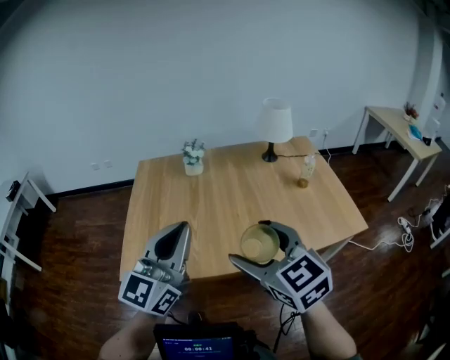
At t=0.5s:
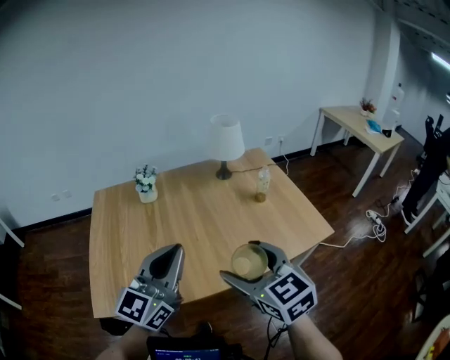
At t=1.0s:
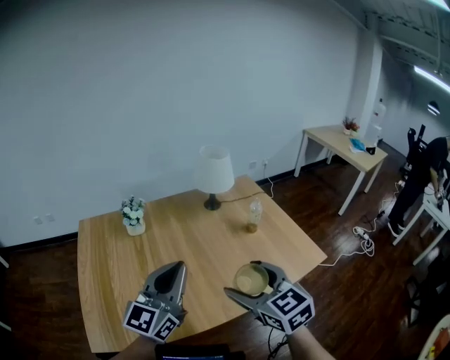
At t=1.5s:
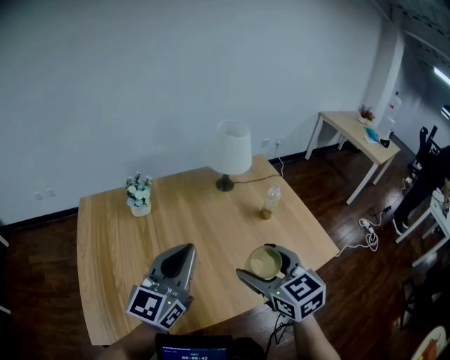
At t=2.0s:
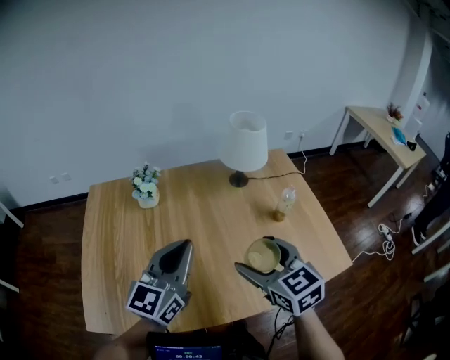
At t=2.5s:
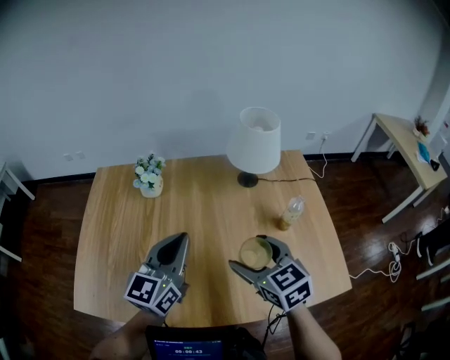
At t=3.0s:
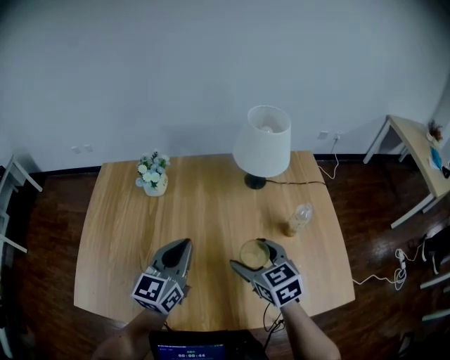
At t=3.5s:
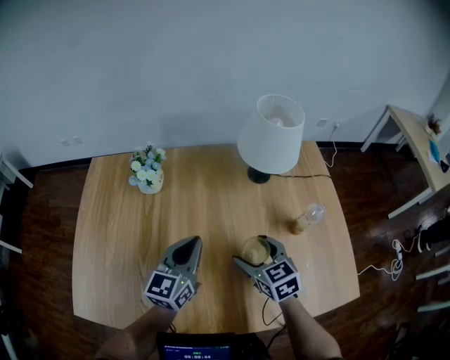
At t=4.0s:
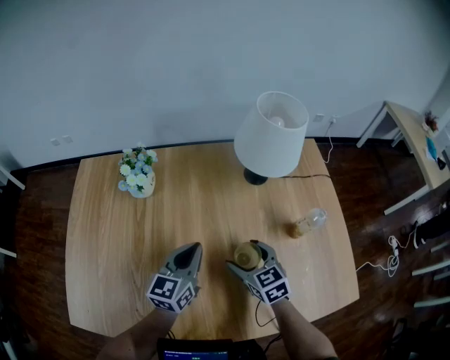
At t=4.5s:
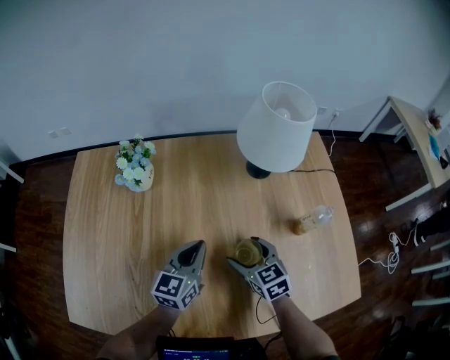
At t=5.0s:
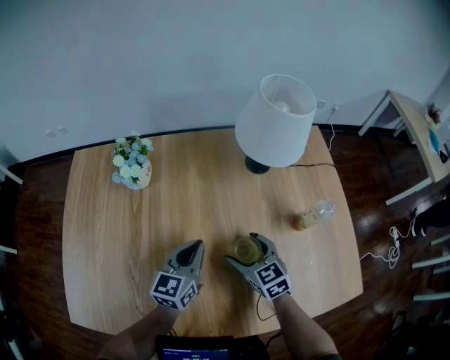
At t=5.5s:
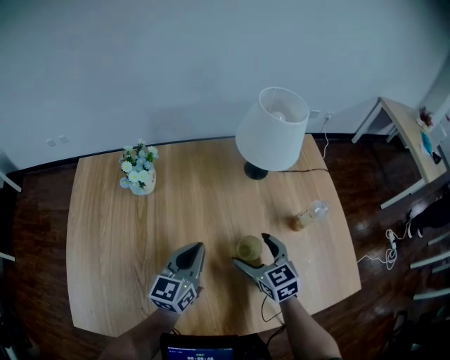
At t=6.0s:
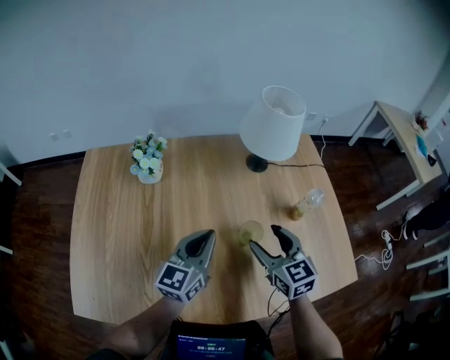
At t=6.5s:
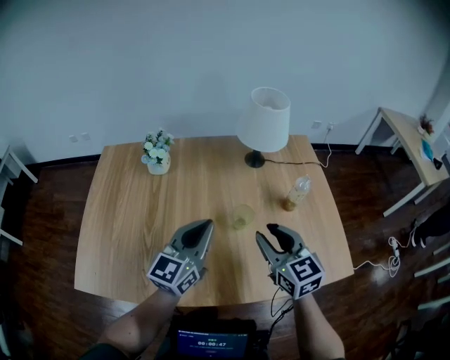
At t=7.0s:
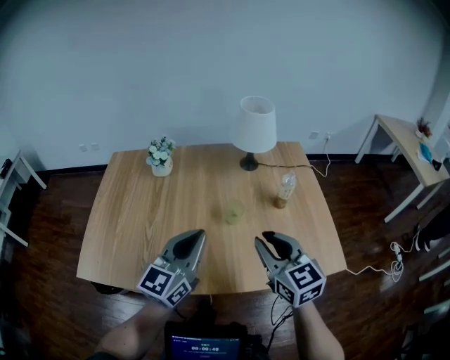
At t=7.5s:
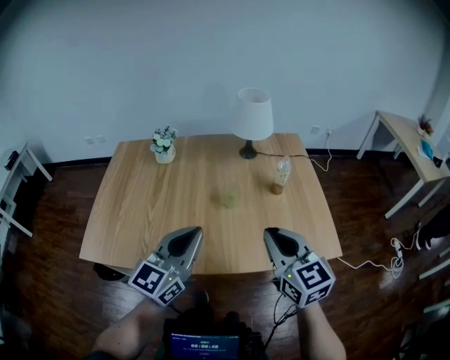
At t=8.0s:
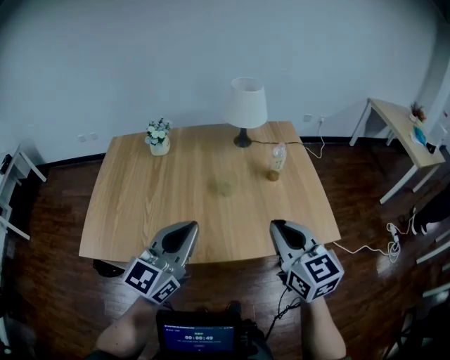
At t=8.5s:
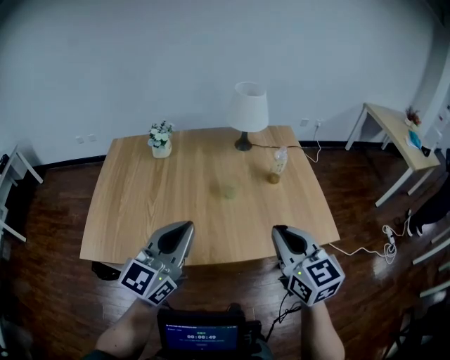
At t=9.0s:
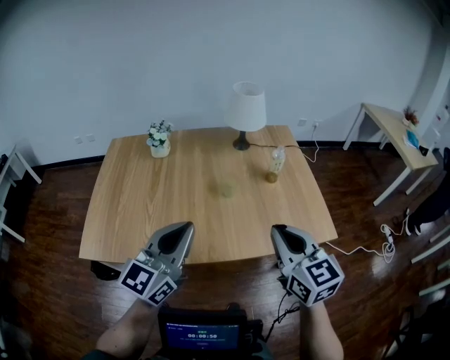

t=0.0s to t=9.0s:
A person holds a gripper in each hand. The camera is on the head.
t=0.0s to t=2.0s: Both grippers move forward and to the right, roughly 25 cm.
t=2.0s to t=4.5s: Both grippers move downward and forward, about 25 cm. The left gripper swivels some 20 degrees.
t=4.5s to t=7.0s: The right gripper heads upward and backward, covering some 30 cm, swivels some 20 degrees, and closes up; the left gripper travels backward and upward by roughly 30 cm, and turns by approximately 20 degrees.
t=7.0s to t=9.0s: Both grippers travel together backward, some 10 cm.

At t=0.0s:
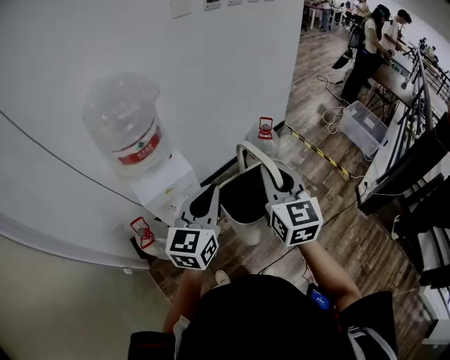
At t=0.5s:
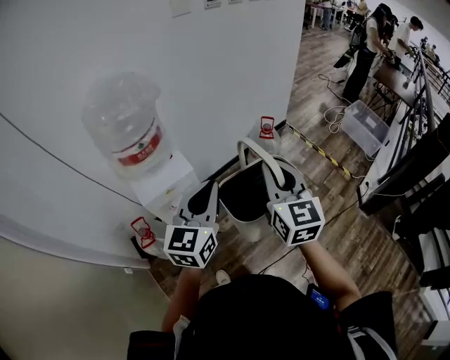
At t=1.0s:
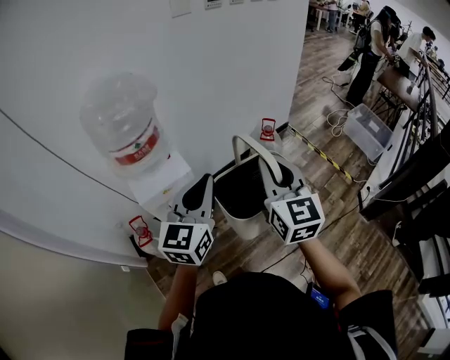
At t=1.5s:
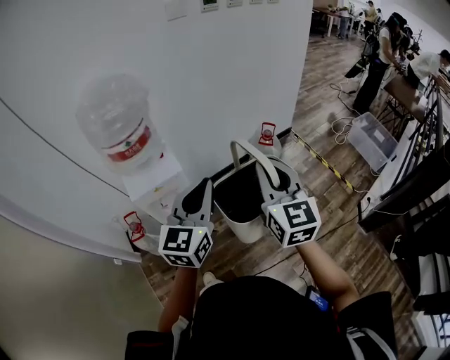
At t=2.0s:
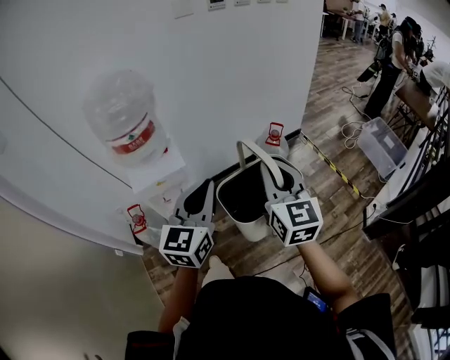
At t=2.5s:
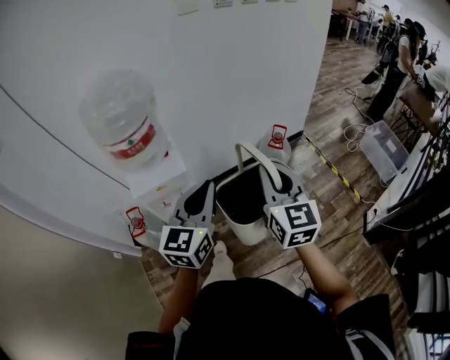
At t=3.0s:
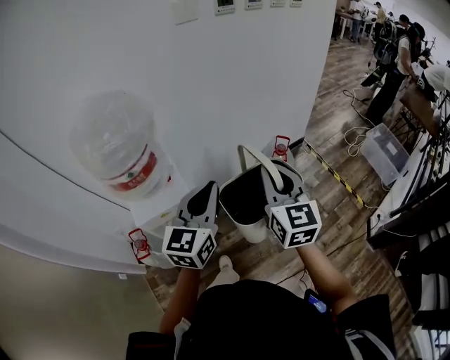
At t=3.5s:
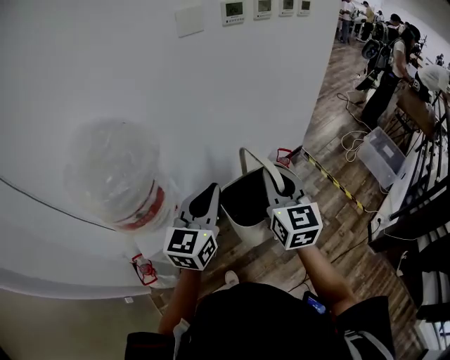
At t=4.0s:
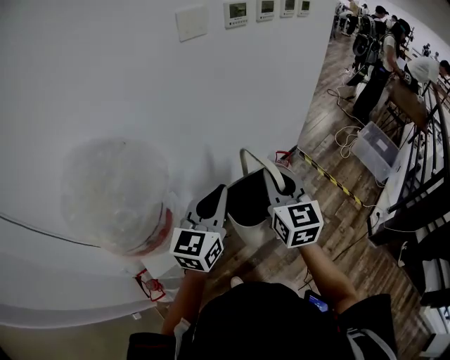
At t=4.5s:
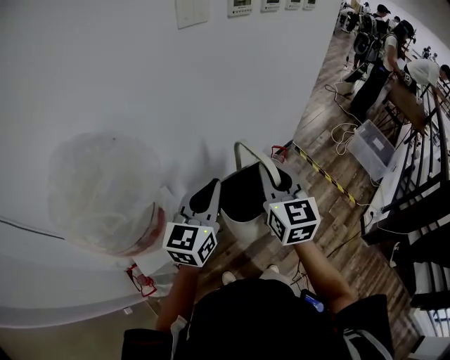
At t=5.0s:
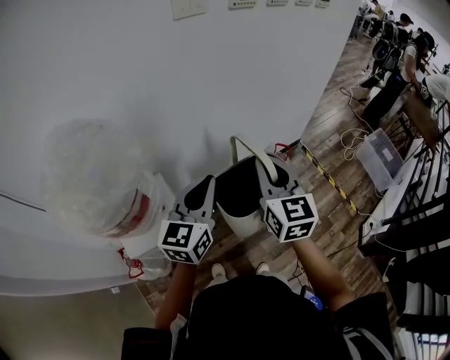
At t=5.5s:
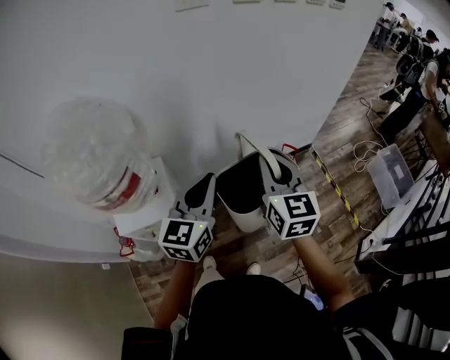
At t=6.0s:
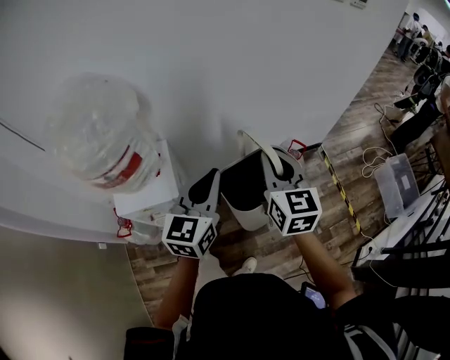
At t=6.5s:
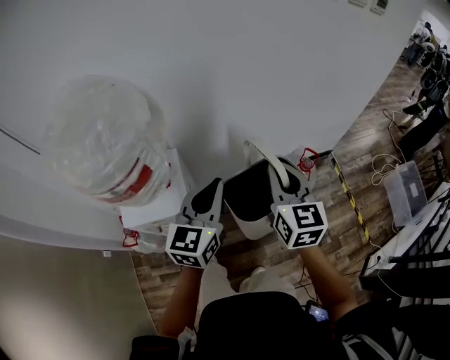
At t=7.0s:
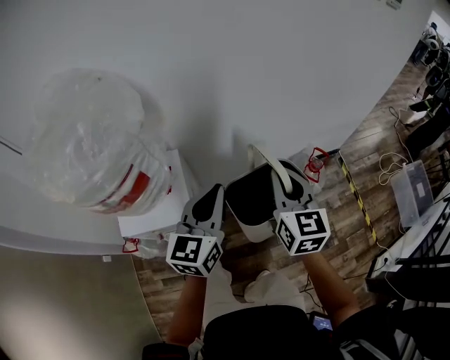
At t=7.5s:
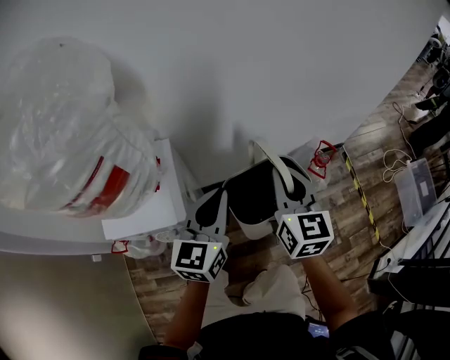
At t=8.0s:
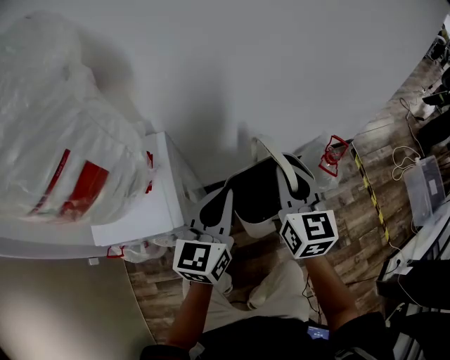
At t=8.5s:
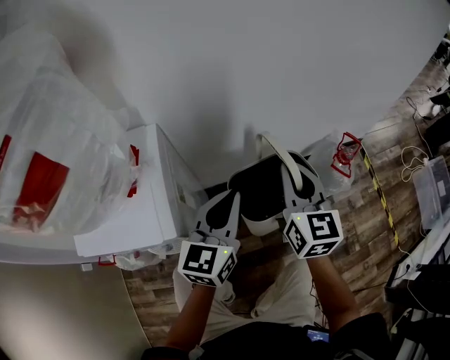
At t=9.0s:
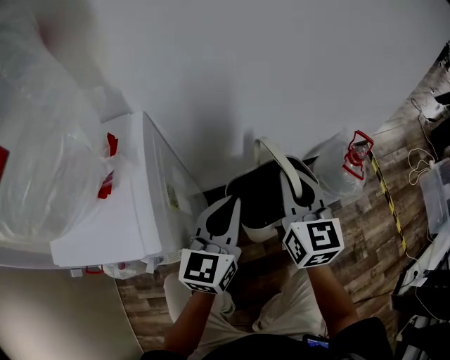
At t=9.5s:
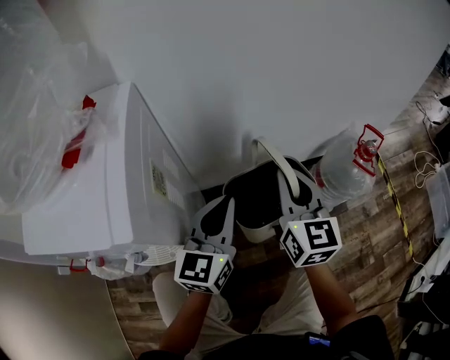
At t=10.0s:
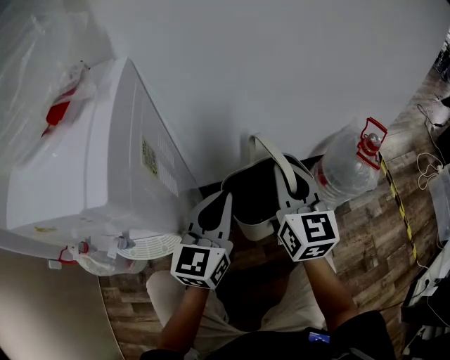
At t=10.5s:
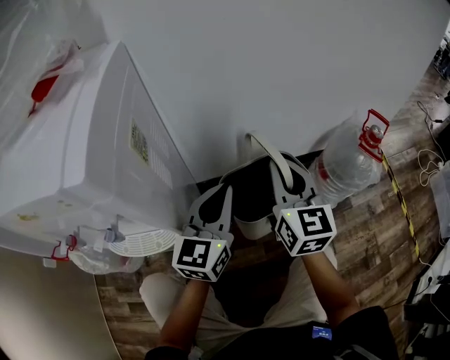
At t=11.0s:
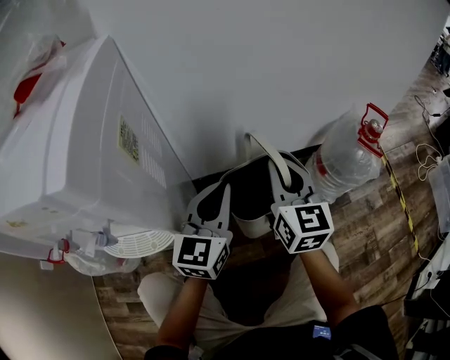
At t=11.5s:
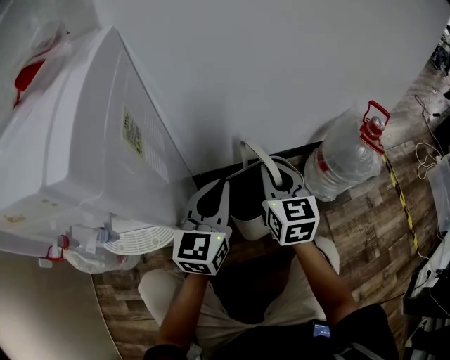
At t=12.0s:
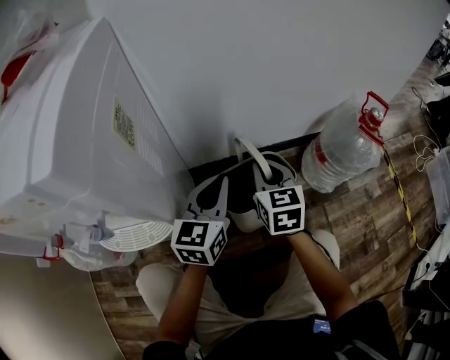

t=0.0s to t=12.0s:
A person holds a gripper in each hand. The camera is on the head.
t=0.0s to t=2.0s: Both grippers move to the right, roughly 10 cm.
t=2.0s to t=4.0s: The left gripper is displaced forward by roughly 30 cm. The right gripper moves forward and to the left, some 30 cm.
t=4.0s to t=6.0s: The left gripper moves to the right and downward, roughly 10 cm, and swivels roughly 20 degrees. Meanwhile the right gripper is displaced to the right by approximately 5 cm, and turns by roughly 20 degrees.
t=6.0s to t=8.0s: Both grippers move downward, some 25 cm.
t=8.0s to t=10.0s: The grippers both shift downward by approximately 25 cm.
t=10.0s to t=12.0s: The right gripper travels downward by some 15 cm, and changes its angle by roughly 20 degrees. Meanwhile the left gripper moves downward, roughly 10 cm.

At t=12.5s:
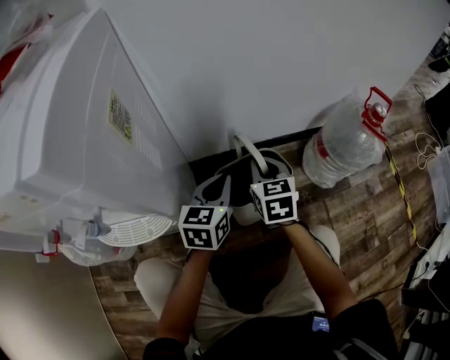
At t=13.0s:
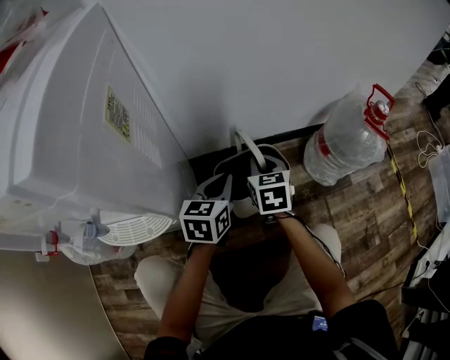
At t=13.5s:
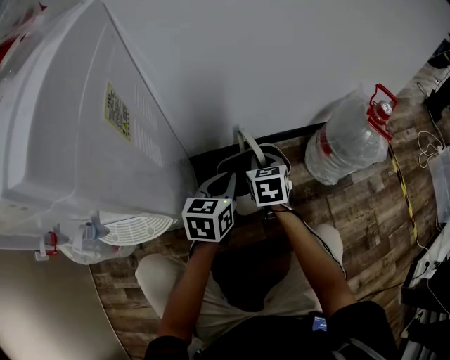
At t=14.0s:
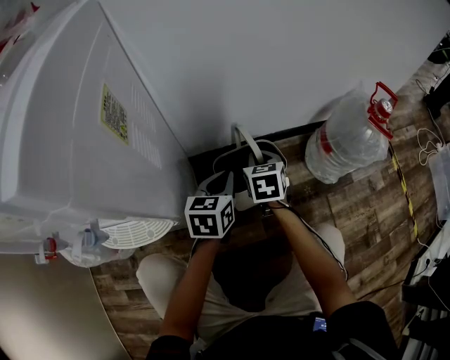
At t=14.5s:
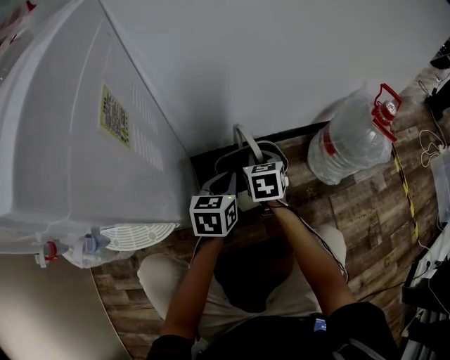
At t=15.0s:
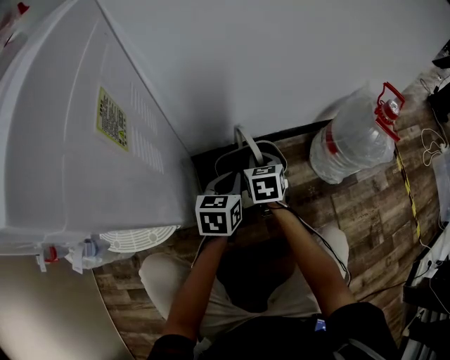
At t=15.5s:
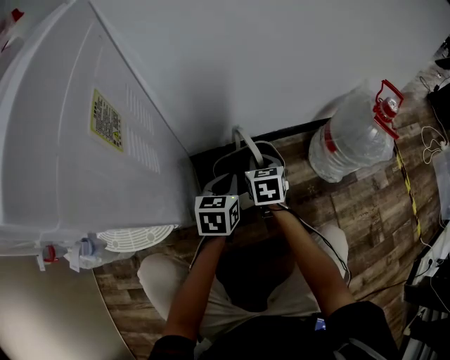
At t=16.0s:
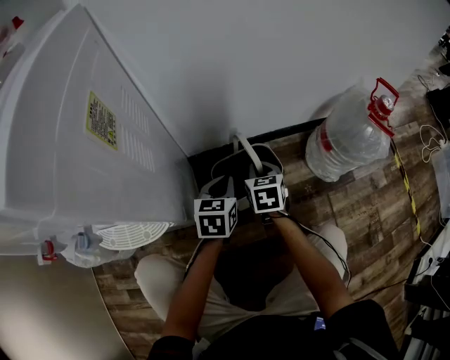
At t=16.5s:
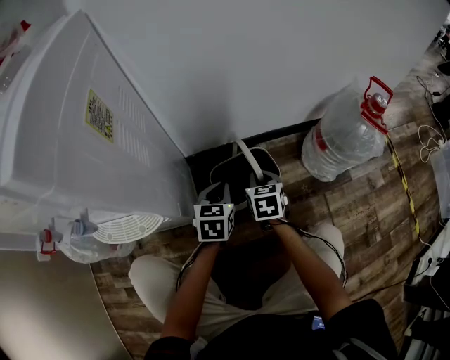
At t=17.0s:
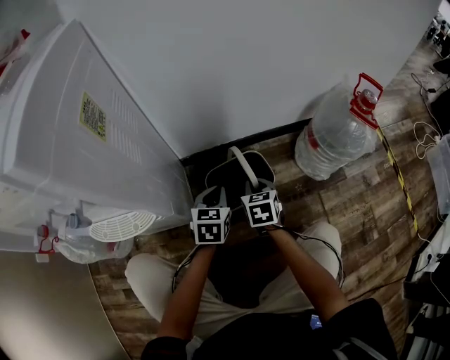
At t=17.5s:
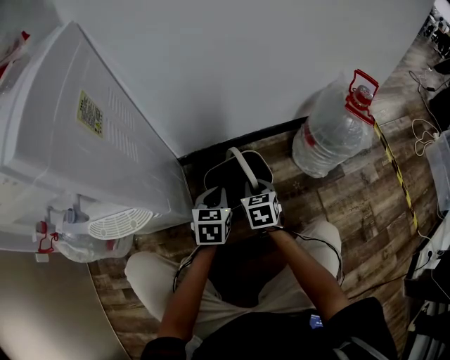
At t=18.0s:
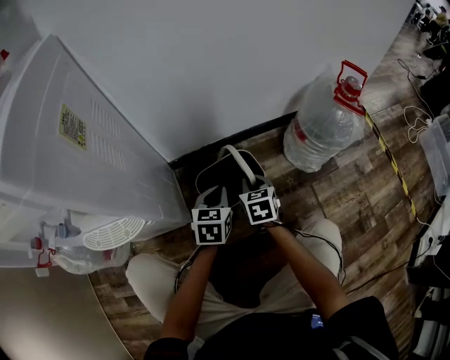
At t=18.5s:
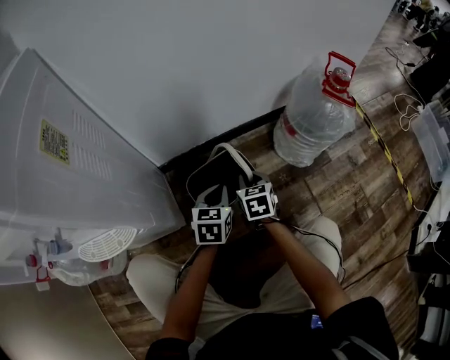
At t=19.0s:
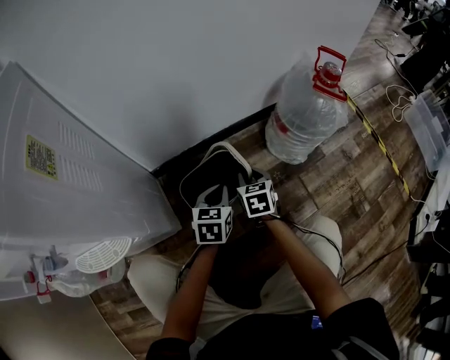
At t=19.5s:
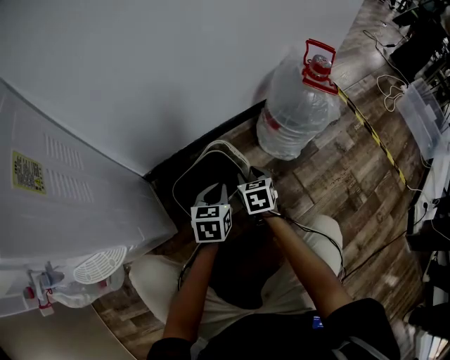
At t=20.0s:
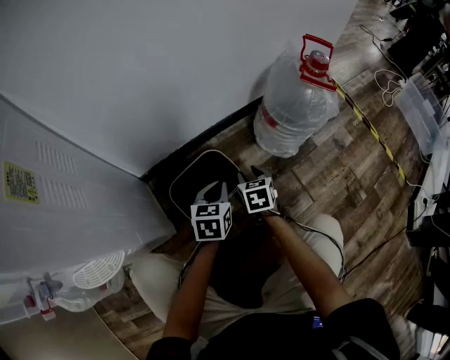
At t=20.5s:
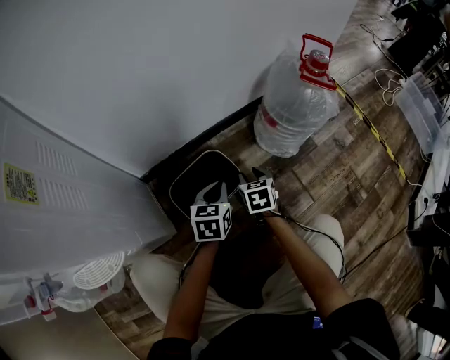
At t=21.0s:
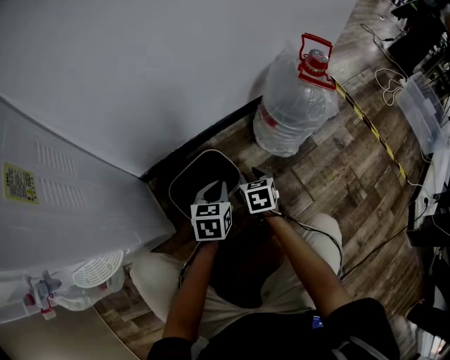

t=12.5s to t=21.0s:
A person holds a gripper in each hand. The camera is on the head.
t=12.5s to t=14.5s: Both grippers travel together downward, approximately 5 cm.
t=14.5s to t=16.5s: The right gripper goes some 5 cm backward, while the left gripper ends up some 5 cm from where it was.
t=16.5s to t=19.0s: Both grippers travel together to the right, some 10 cm.
t=19.0s to t=21.0s: The right gripper moves roughly 5 cm.
